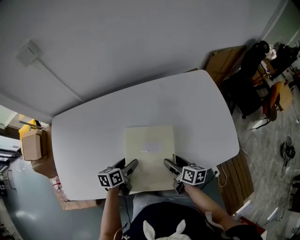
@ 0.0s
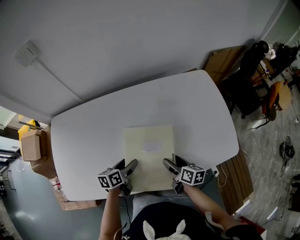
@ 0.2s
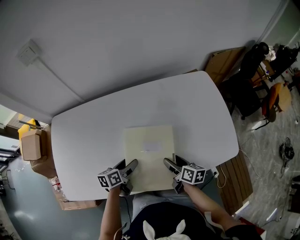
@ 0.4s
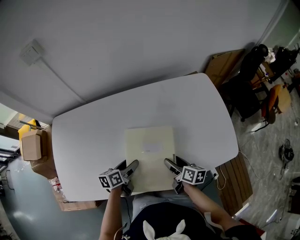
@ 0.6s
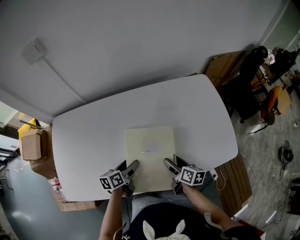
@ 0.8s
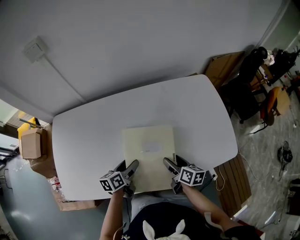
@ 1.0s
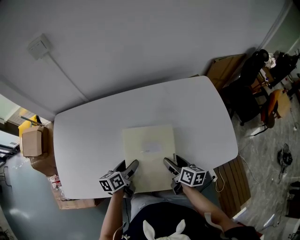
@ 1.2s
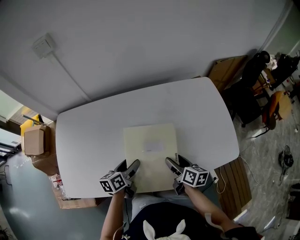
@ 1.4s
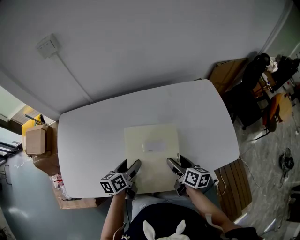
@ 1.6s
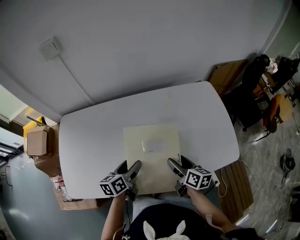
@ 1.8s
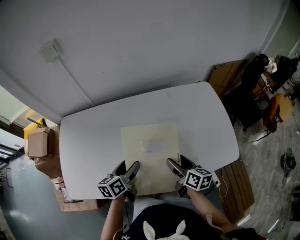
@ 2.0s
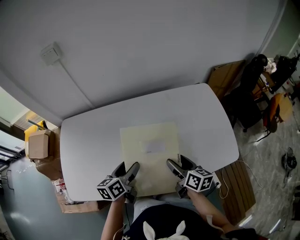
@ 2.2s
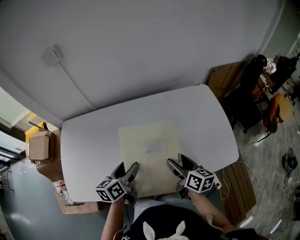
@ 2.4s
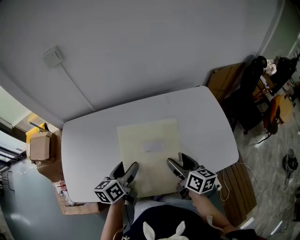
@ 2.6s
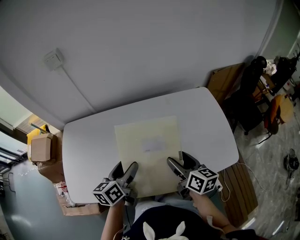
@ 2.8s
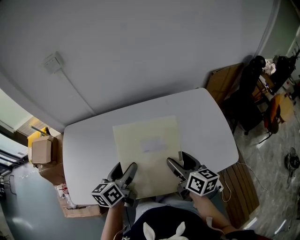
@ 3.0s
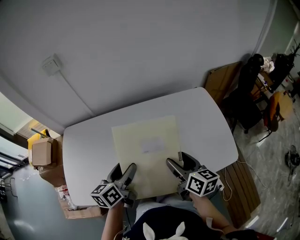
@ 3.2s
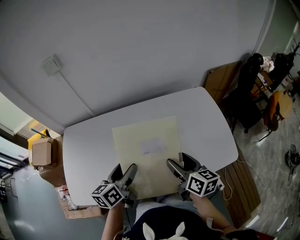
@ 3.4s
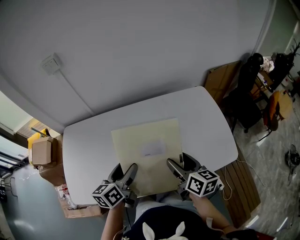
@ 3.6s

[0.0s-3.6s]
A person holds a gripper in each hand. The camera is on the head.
0.0s to 1.8s: The two grippers go approximately 10 cm upward.
1.8s to 3.6s: The grippers both shift upward by about 10 cm.

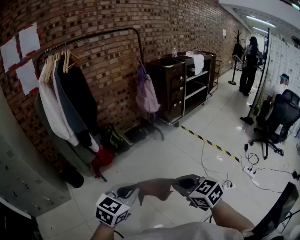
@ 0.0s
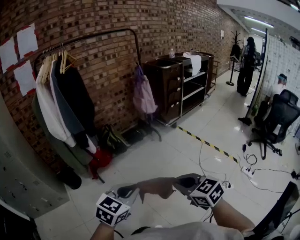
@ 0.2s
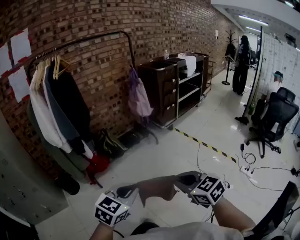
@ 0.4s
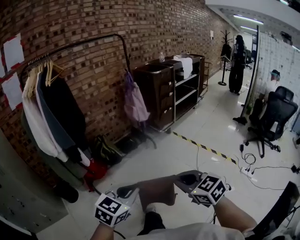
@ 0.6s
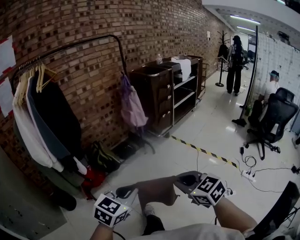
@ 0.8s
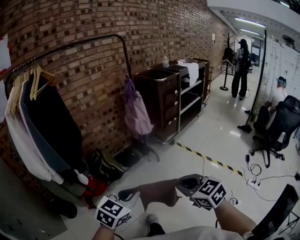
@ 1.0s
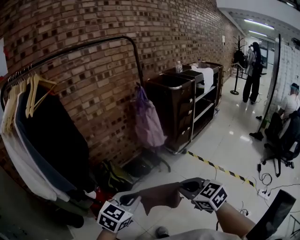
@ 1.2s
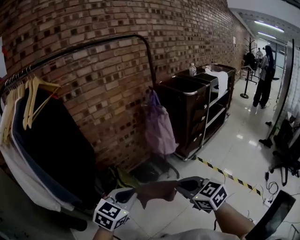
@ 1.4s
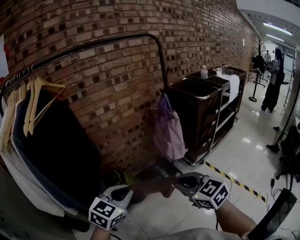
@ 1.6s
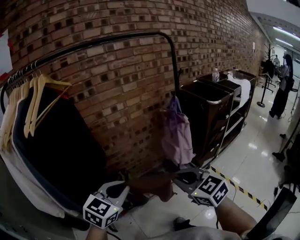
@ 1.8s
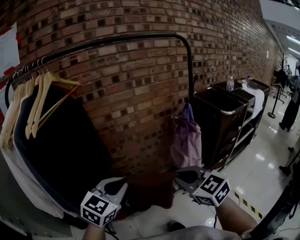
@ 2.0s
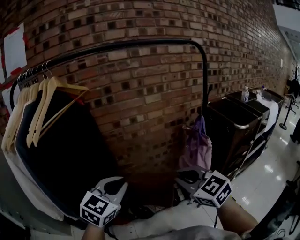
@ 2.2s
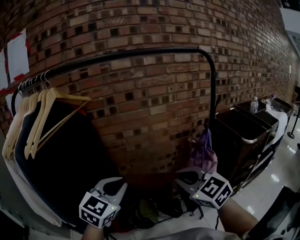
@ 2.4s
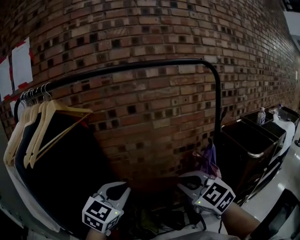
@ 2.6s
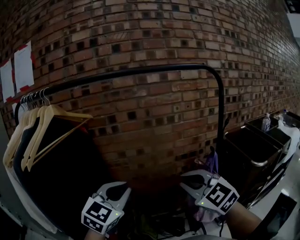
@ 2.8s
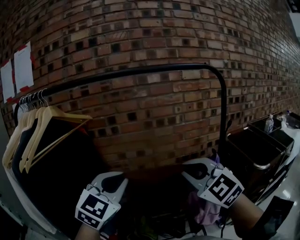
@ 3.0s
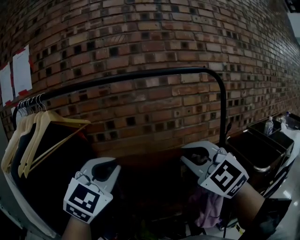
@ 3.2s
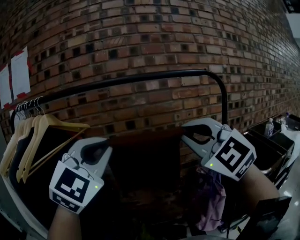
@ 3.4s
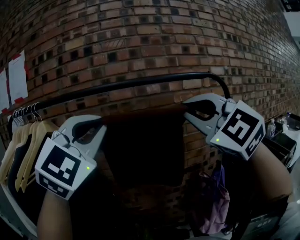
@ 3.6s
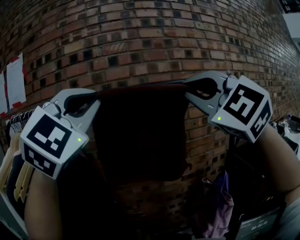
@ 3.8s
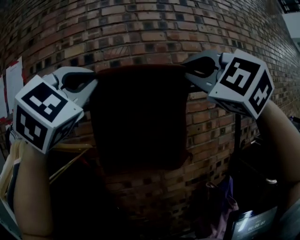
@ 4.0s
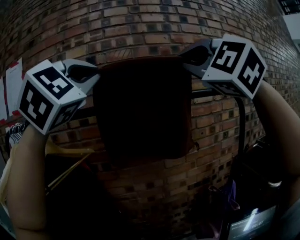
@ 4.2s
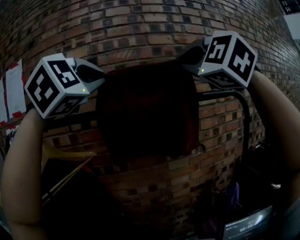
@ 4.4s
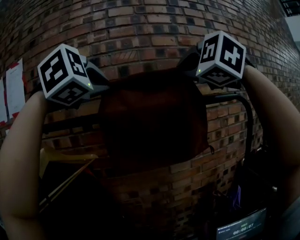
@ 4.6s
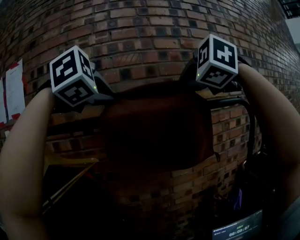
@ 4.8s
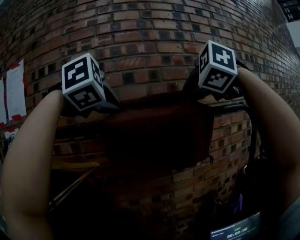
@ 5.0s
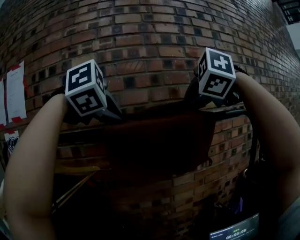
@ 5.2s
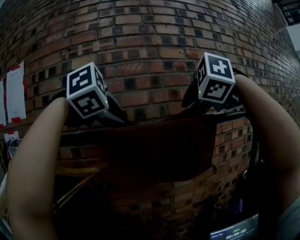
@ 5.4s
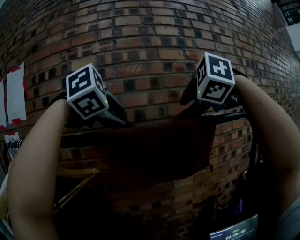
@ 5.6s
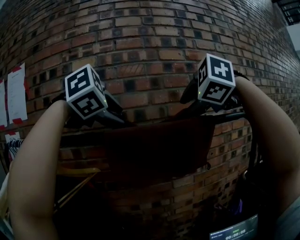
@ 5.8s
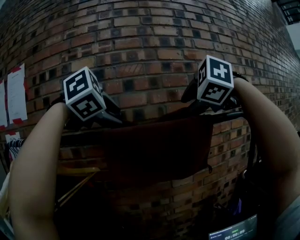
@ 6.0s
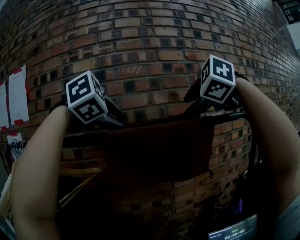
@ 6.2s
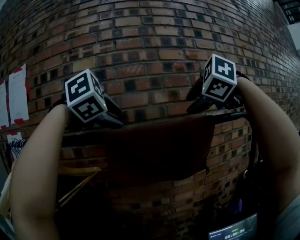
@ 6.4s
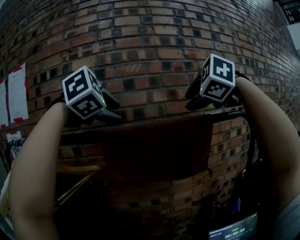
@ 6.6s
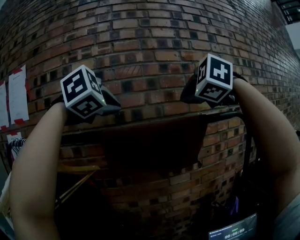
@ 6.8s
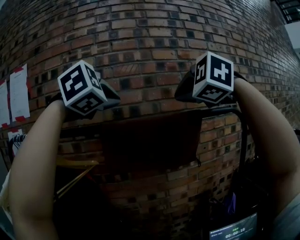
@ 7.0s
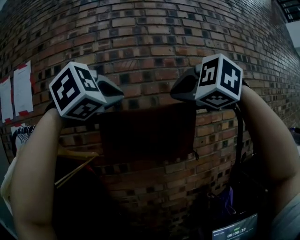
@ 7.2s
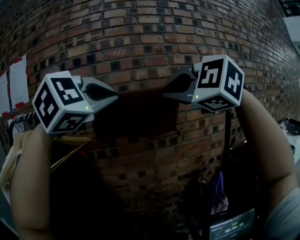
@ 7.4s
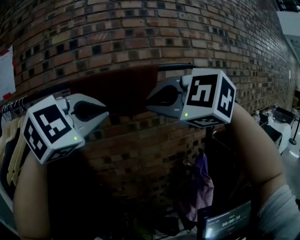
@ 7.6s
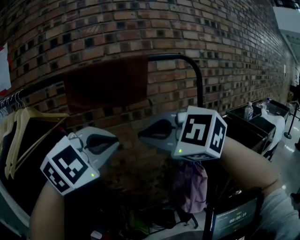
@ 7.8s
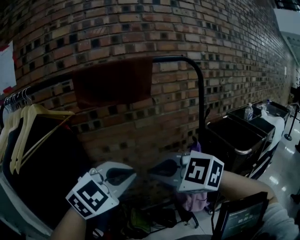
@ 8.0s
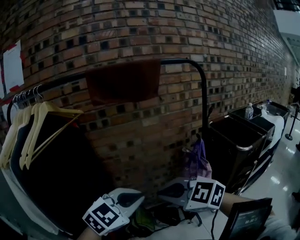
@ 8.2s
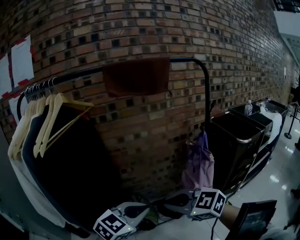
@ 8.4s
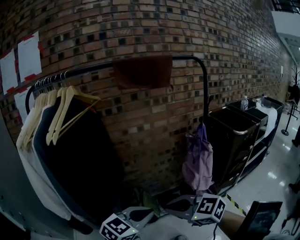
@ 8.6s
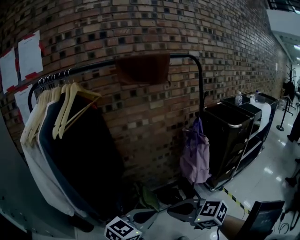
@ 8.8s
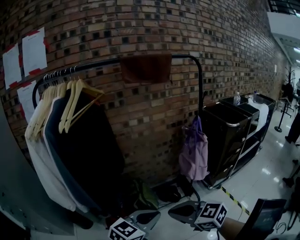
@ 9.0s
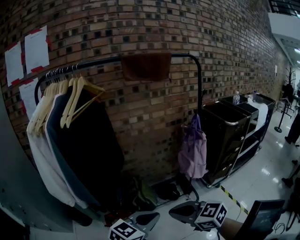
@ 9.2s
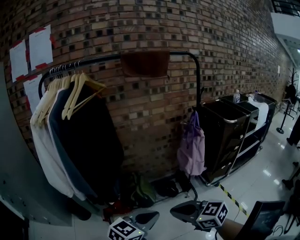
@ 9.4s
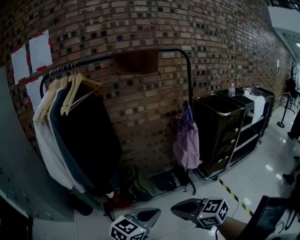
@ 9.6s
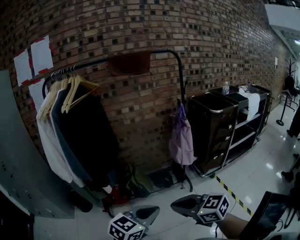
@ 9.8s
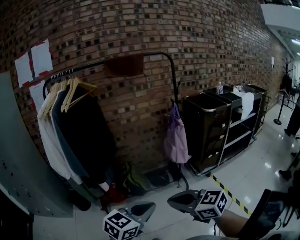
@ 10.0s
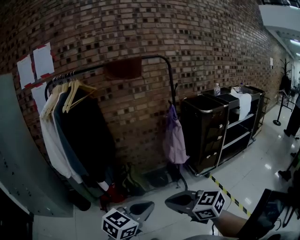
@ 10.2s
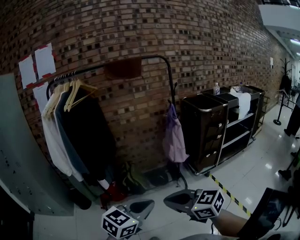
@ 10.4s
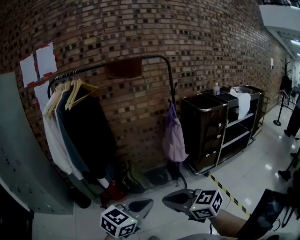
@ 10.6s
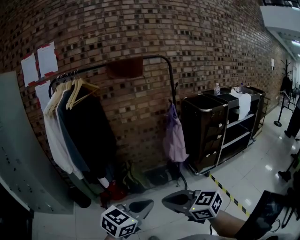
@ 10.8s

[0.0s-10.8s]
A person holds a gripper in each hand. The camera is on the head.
0.0s to 1.6s: The pair of grippers is taken forward, approximately 60 cm.
1.6s to 3.0s: The grippers both shift forward and upward by some 40 cm. The right gripper turns by some 40 degrees. The left gripper changes its angle by some 40 degrees.
3.0s to 4.6s: The grippers both shift upward and forward by approximately 40 cm. The left gripper changes its angle by about 40 degrees. The right gripper turns by some 30 degrees.
4.6s to 6.2s: Both grippers travel together downward and forward, some 10 cm. The left gripper changes its angle by approximately 20 degrees, and opens up, while the right gripper turns by some 30 degrees, and opens its fingers.
6.2s to 7.8s: The left gripper moves backward, downward and to the right, about 35 cm, changes its angle by roughly 20 degrees, and closes its fingers. The right gripper is displaced backward and downward by roughly 35 cm, changes its angle by approximately 30 degrees, and closes its fingers.
7.8s to 9.2s: The pair of grippers is taken backward, approximately 40 cm. The grippers both shift downward by about 30 cm. The right gripper rolls clockwise, seen from behind, by some 50 degrees; the left gripper rotates around the line of its fingers by some 50 degrees, counterclockwise from behind.
9.2s to 10.8s: The grippers both shift backward and to the right by some 30 cm.

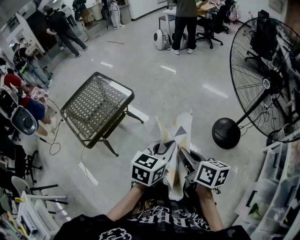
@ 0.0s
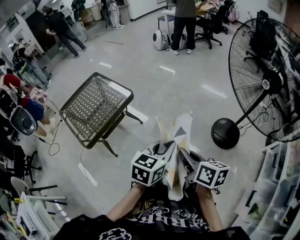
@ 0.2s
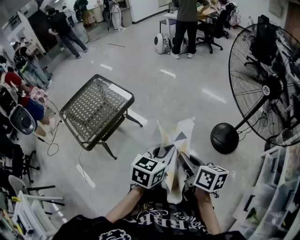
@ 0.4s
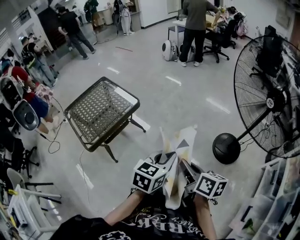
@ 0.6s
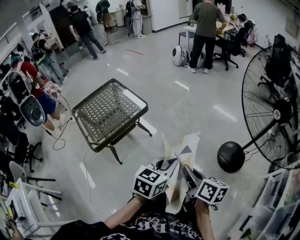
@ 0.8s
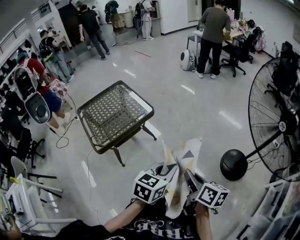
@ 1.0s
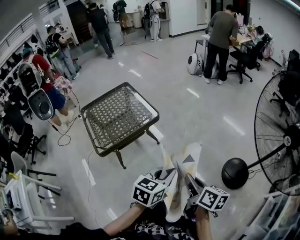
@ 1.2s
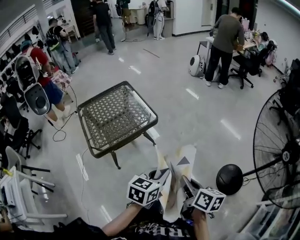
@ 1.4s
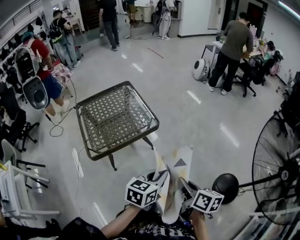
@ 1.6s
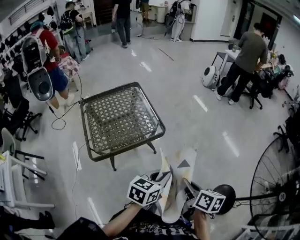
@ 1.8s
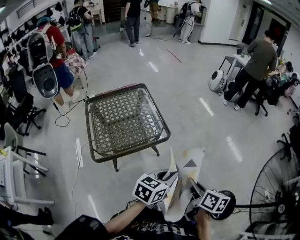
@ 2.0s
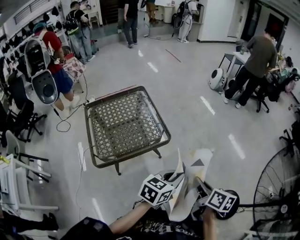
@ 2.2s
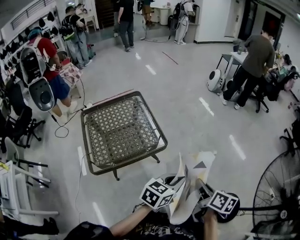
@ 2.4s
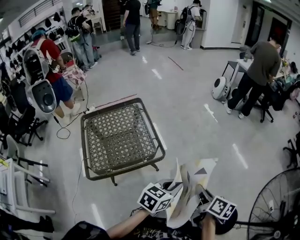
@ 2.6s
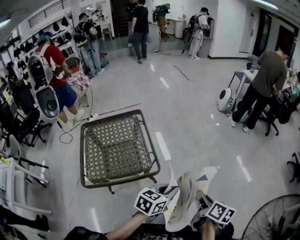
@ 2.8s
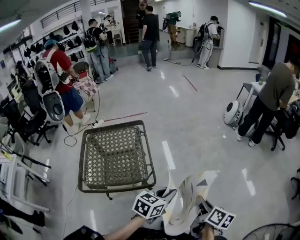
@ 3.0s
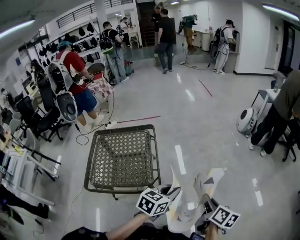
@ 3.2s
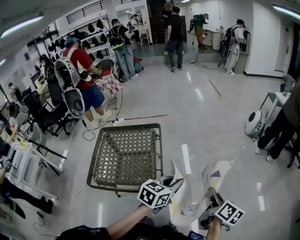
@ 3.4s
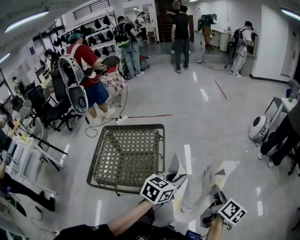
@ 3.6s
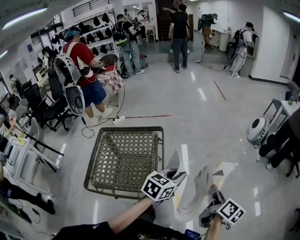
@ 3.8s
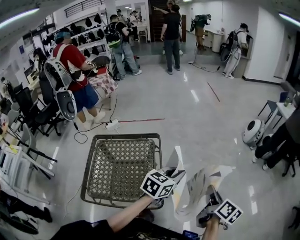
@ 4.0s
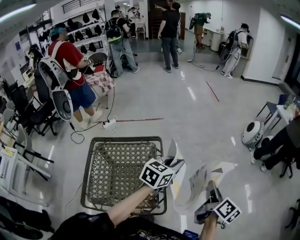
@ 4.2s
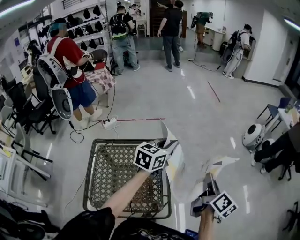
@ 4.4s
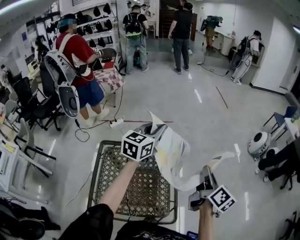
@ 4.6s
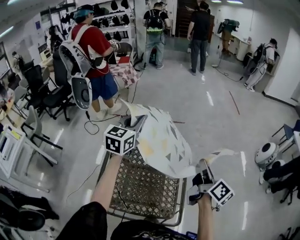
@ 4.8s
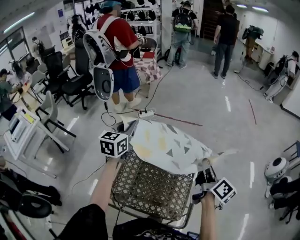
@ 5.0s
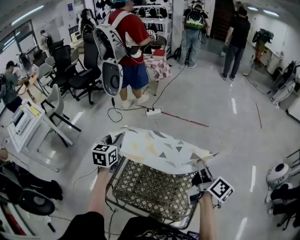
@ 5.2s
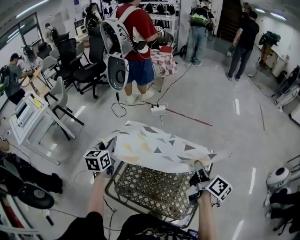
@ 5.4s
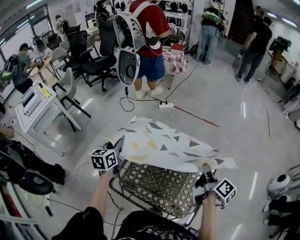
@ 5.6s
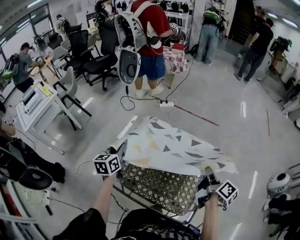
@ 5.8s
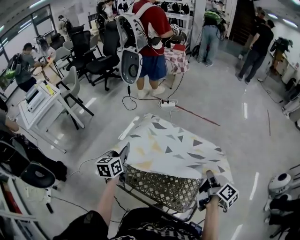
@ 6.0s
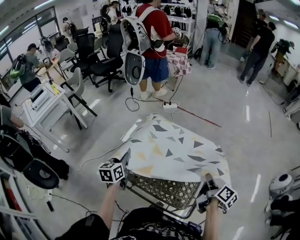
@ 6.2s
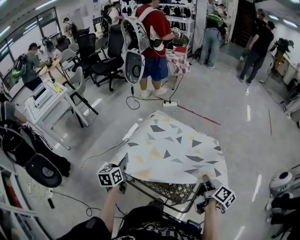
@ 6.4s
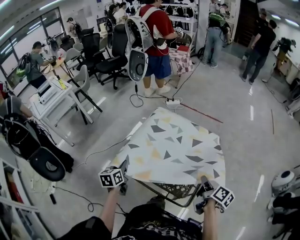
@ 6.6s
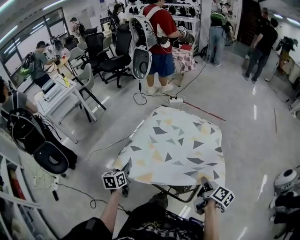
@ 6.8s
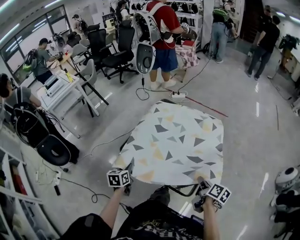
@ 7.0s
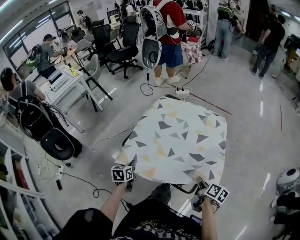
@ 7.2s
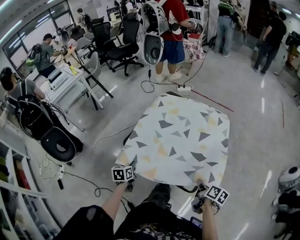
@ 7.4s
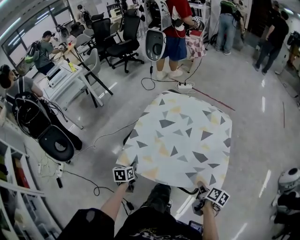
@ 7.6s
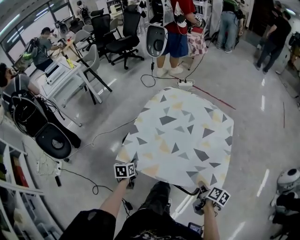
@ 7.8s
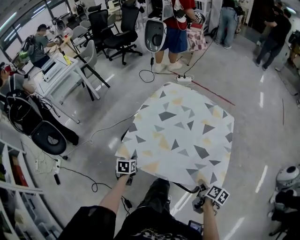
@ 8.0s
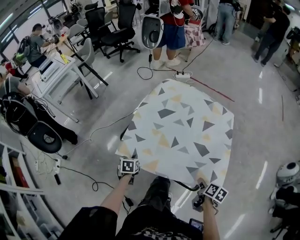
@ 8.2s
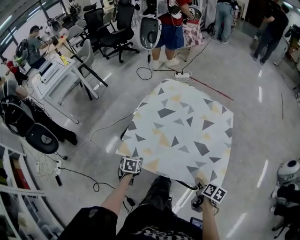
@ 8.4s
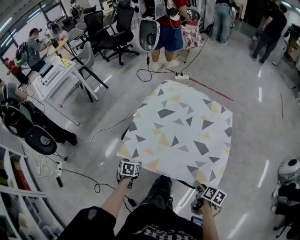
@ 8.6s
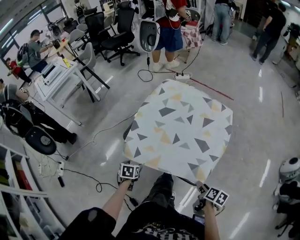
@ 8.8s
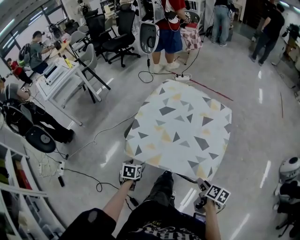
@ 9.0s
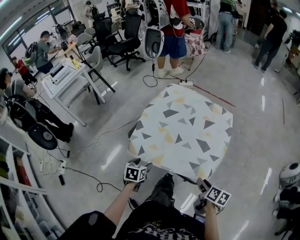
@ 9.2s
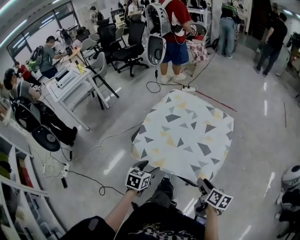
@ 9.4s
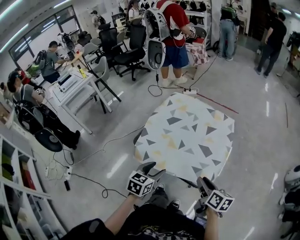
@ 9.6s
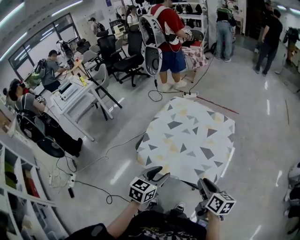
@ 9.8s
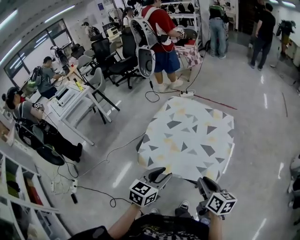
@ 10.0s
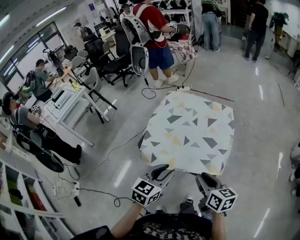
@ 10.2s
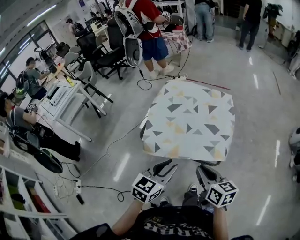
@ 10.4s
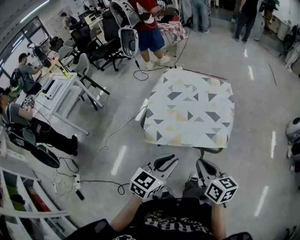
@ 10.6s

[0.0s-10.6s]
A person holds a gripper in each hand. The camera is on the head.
0.0s to 1.6s: The grippers both shift forward and to the left by some 20 cm. The left gripper rotates approximately 20 degrees.
1.6s to 3.0s: Both grippers move forward, approximately 40 cm.
3.0s to 4.6s: The two grippers travel together, forward and to the left, some 60 cm. The left gripper turns by approximately 30 degrees.
4.6s to 6.0s: The left gripper moves about 50 cm, and rotates about 60 degrees. Meanwhile the right gripper ends up some 20 cm from where it was, and rotates roughly 30 degrees.
6.0s to 7.6s: The two grippers go roughly 30 cm backward and downward. The right gripper changes its angle by roughly 30 degrees. Meanwhile the left gripper turns by approximately 20 degrees.
7.6s to 9.0s: Both grippers move backward, roughly 5 cm. The left gripper opens its fingers, while the right gripper opens its fingers.
9.0s to 10.6s: The left gripper is displaced upward and backward by about 30 cm, points its fingers roughly 40 degrees further upward, and closes up. Meanwhile the right gripper is displaced to the left, upward and backward by about 30 cm, turns by some 40 degrees, and closes its fingers.
